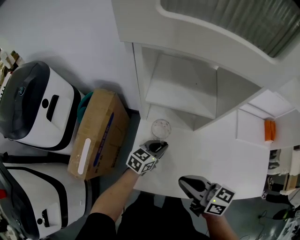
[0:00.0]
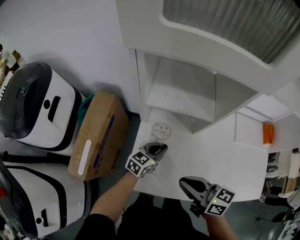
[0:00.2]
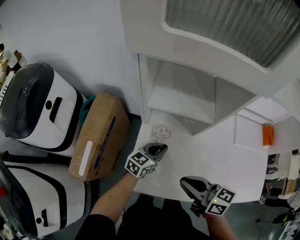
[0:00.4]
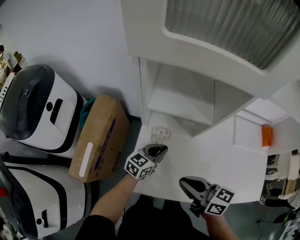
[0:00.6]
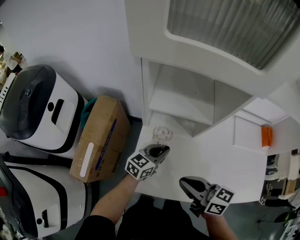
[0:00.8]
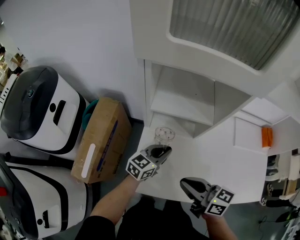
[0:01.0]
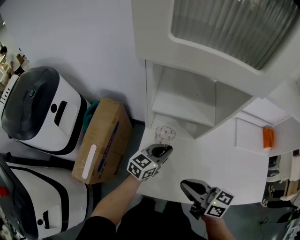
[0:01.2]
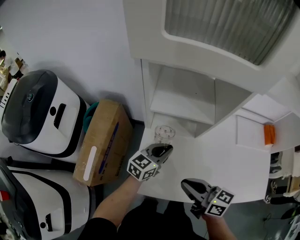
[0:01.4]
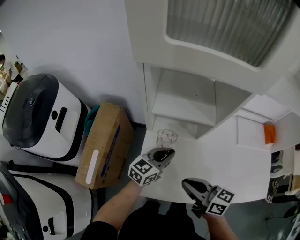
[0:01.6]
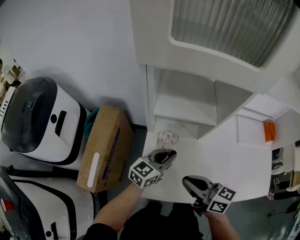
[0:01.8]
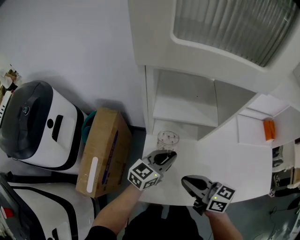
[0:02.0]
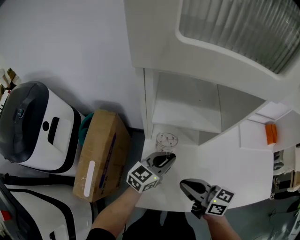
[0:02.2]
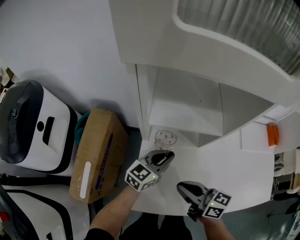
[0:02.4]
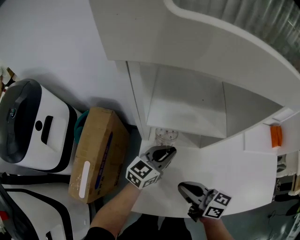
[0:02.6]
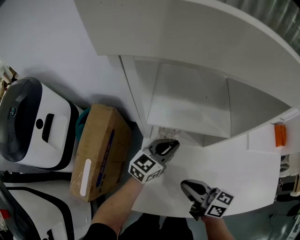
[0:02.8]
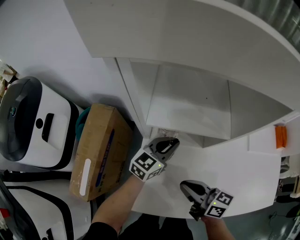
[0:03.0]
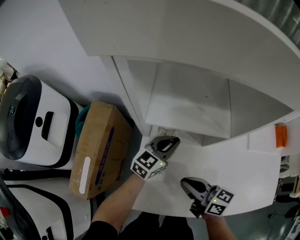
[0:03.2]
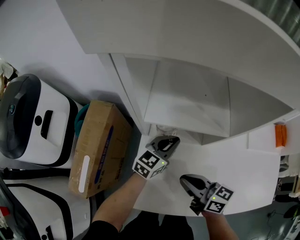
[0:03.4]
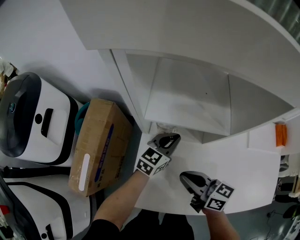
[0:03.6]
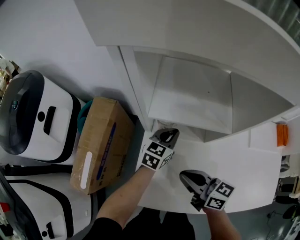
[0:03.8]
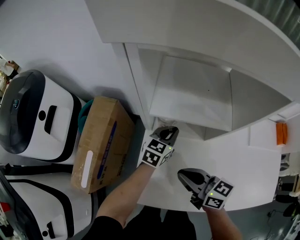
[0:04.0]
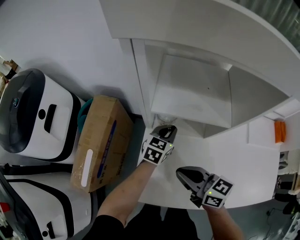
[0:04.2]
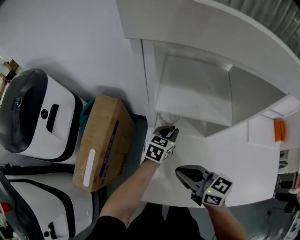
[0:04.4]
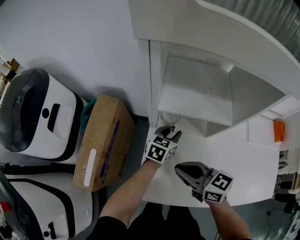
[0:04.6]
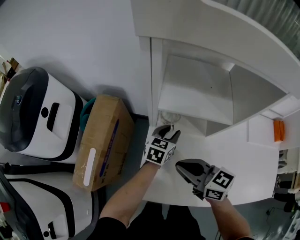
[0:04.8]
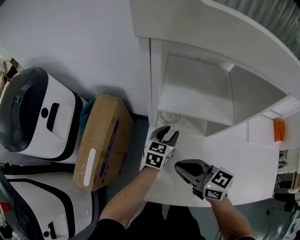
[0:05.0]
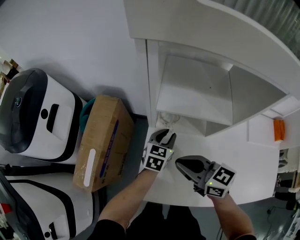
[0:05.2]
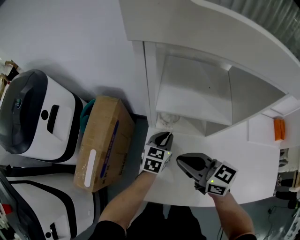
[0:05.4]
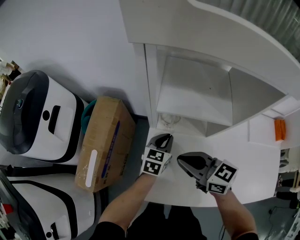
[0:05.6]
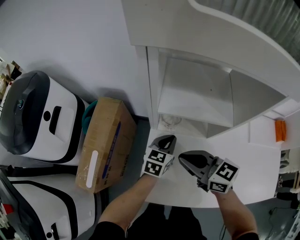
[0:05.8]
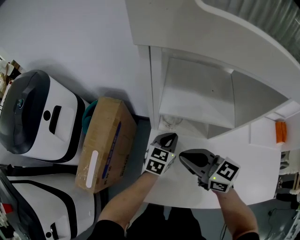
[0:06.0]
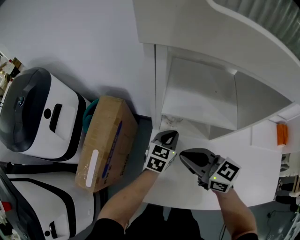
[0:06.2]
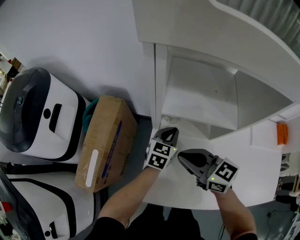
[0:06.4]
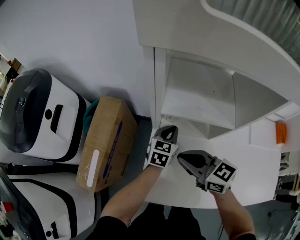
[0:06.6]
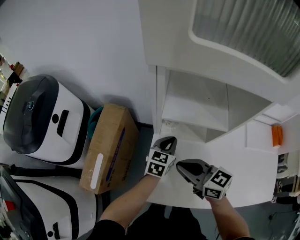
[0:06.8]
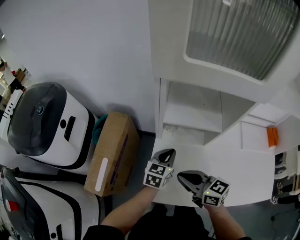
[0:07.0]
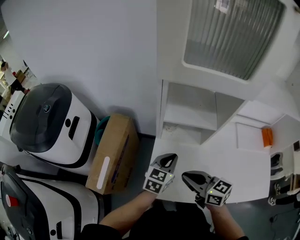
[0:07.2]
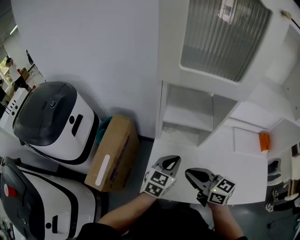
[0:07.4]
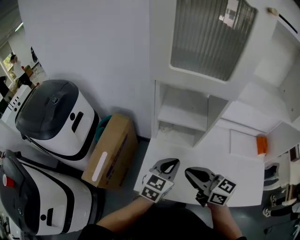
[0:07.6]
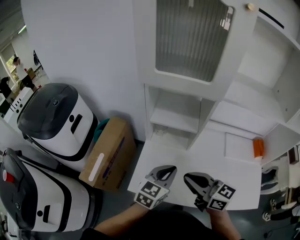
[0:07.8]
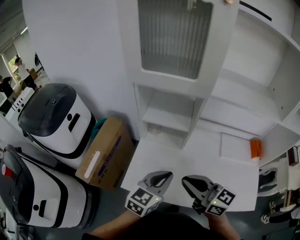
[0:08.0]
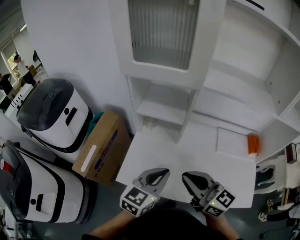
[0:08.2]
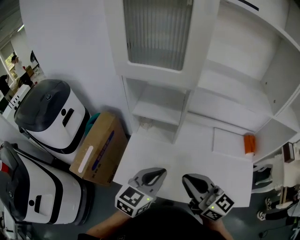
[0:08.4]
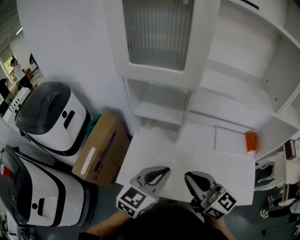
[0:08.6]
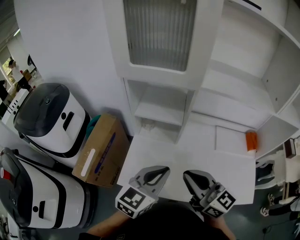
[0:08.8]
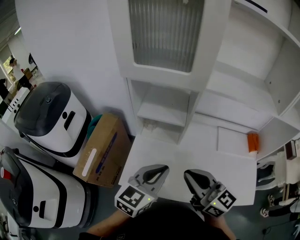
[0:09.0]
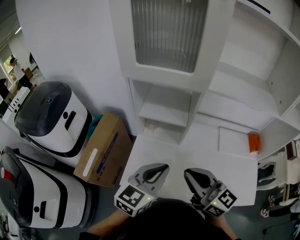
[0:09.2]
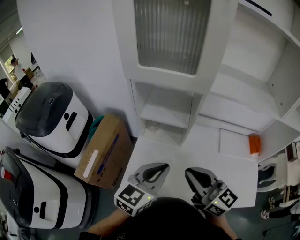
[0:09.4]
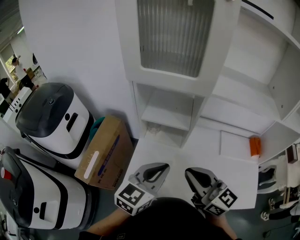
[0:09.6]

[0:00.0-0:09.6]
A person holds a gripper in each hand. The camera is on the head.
0:00.0 to 0:01.6: The left gripper shifts approximately 10 cm upward.
0:01.6 to 0:03.2: The right gripper heads downward and forward, covering approximately 10 cm. Meanwhile the left gripper goes roughly 10 cm forward.
0:03.2 to 0:04.8: The right gripper goes roughly 5 cm to the left. The left gripper moves roughly 5 cm, turns by roughly 20 degrees, and opens.
0:04.8 to 0:06.4: The left gripper closes.
0:06.4 to 0:08.0: The right gripper moves backward, upward and to the right, about 30 cm; the left gripper travels backward and upward by about 35 cm.
0:08.0 to 0:09.6: The left gripper shifts approximately 5 cm upward.

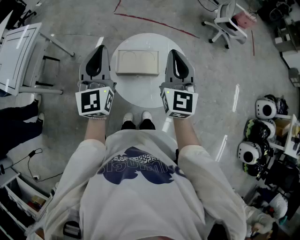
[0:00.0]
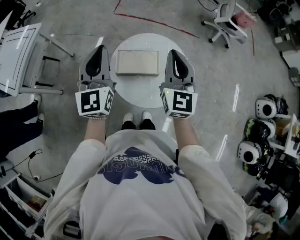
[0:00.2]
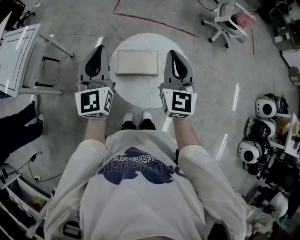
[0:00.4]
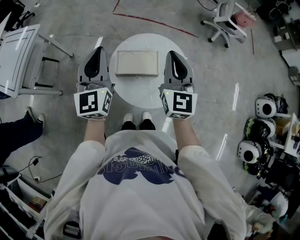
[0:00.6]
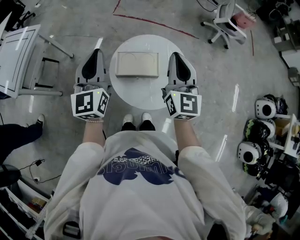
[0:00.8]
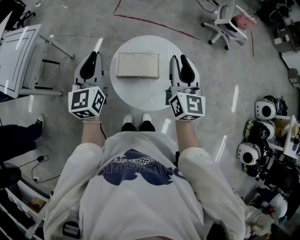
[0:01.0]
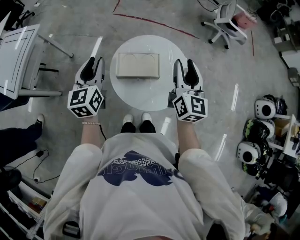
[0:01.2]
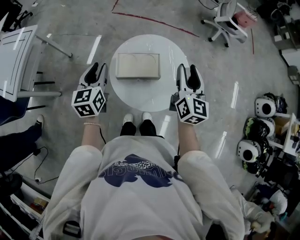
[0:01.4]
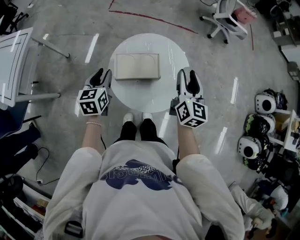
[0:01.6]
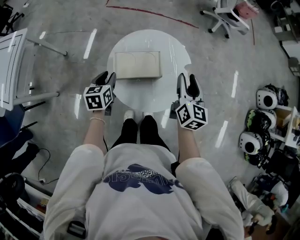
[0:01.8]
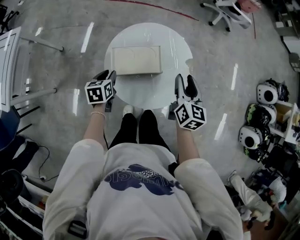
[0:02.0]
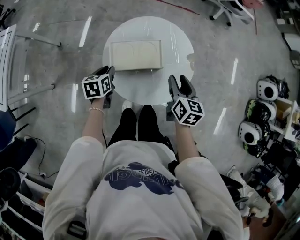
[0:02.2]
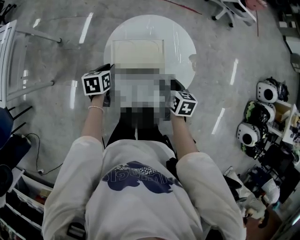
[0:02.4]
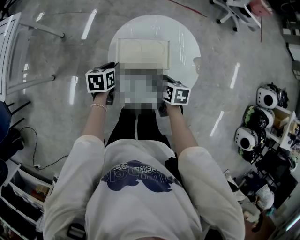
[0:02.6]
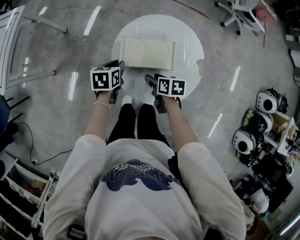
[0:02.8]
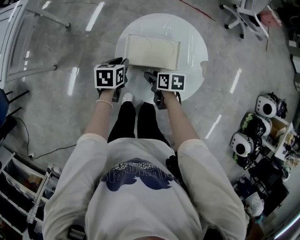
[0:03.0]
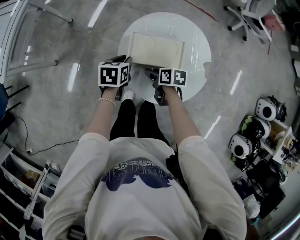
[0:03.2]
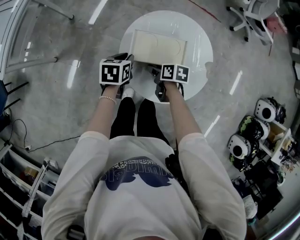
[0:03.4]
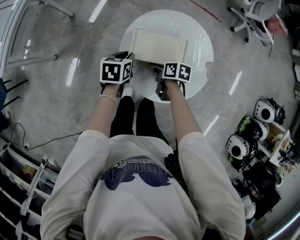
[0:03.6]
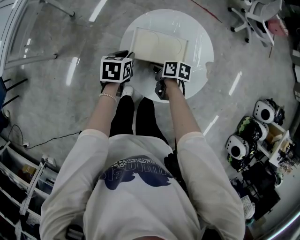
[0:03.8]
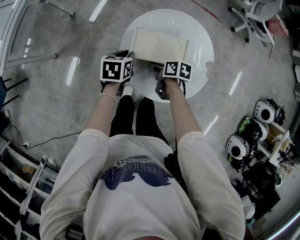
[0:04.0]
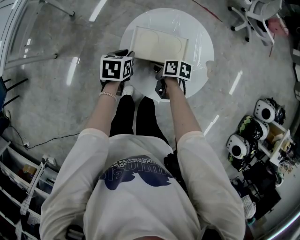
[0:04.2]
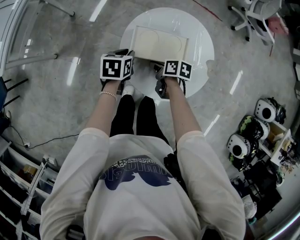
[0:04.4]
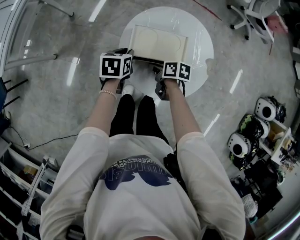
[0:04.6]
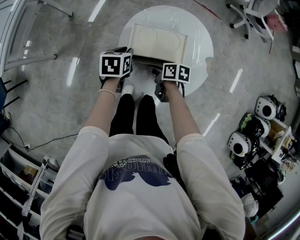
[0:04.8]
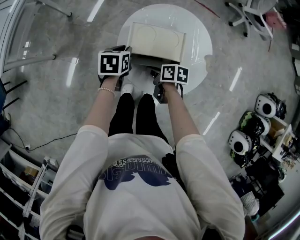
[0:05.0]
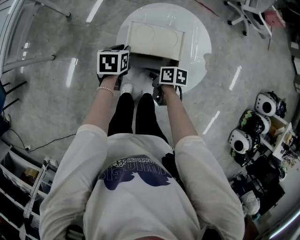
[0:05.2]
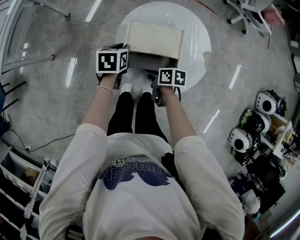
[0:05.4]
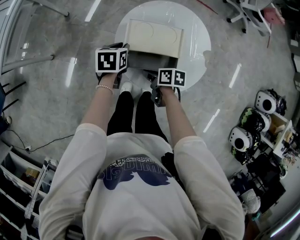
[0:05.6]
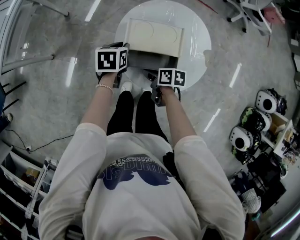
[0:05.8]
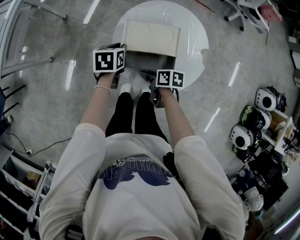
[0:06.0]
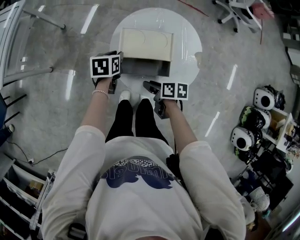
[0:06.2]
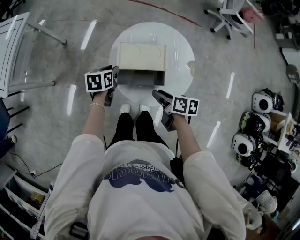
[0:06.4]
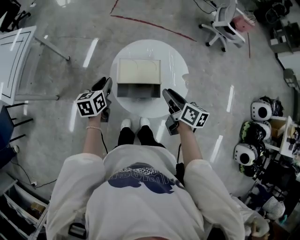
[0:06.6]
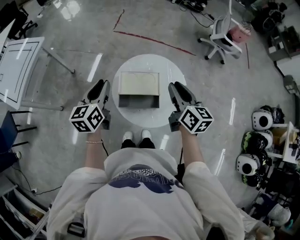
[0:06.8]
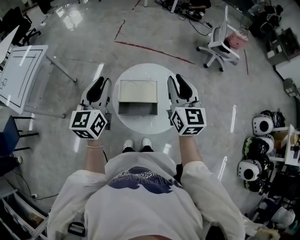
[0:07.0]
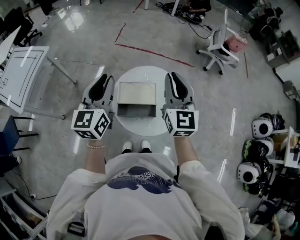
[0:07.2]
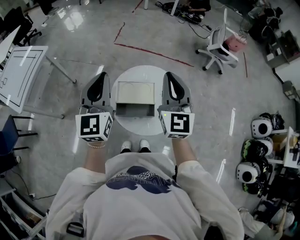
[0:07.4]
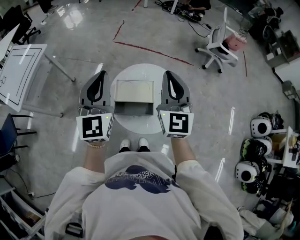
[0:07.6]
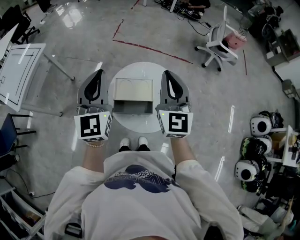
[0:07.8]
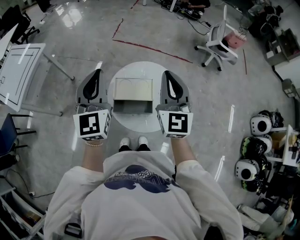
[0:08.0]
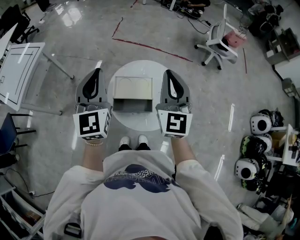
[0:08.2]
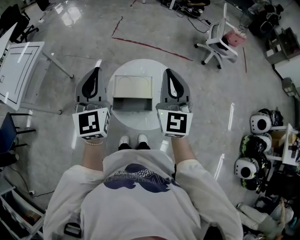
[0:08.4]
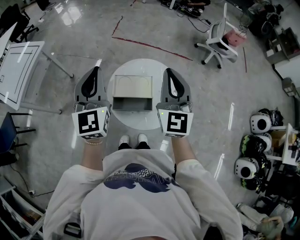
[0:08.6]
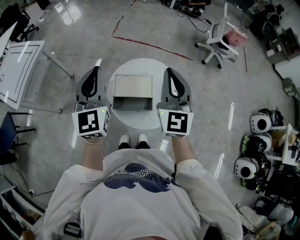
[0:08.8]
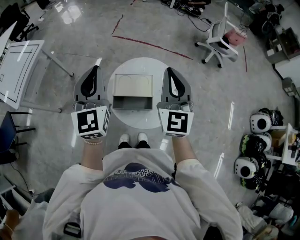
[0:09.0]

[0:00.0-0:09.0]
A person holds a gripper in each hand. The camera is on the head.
0:00.0 to 0:01.6: The right gripper shifts about 15 cm downward and to the right, rotates approximately 30 degrees, and opens, while the left gripper goes some 20 cm downward, angles its fingers downward, by some 40 degrees, and opens its fingers.
0:01.6 to 0:03.0: The left gripper goes roughly 15 cm downward, and turns by approximately 30 degrees. The right gripper travels downward by approximately 30 cm, and tilts its fingers about 40 degrees downward.
0:03.0 to 0:04.4: The right gripper closes.
0:04.4 to 0:06.0: The right gripper shifts about 10 cm backward.
0:06.0 to 0:07.6: Both grippers move upward, about 50 cm. The right gripper tilts its fingers approximately 50 degrees upward, and closes up; the left gripper tilts its fingers about 60 degrees upward.
0:07.6 to 0:09.0: The grippers move only a little.

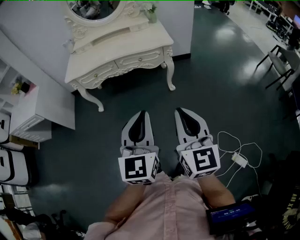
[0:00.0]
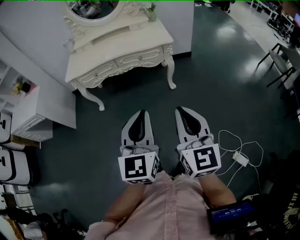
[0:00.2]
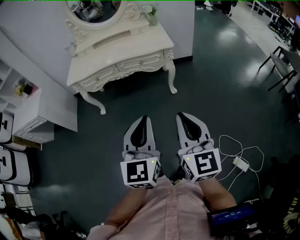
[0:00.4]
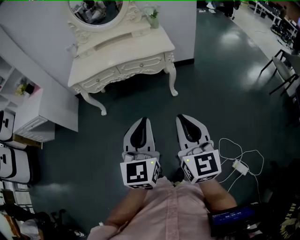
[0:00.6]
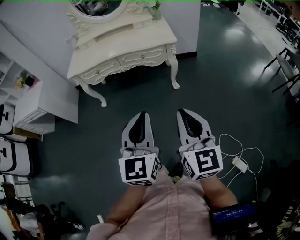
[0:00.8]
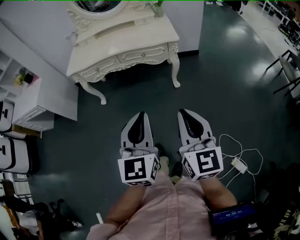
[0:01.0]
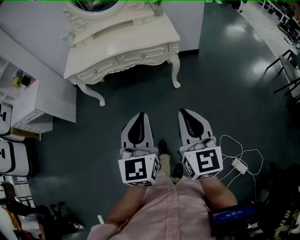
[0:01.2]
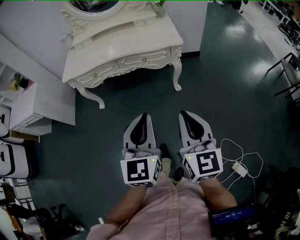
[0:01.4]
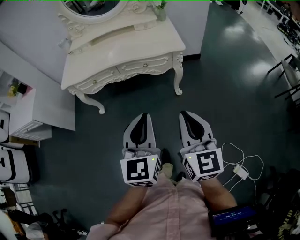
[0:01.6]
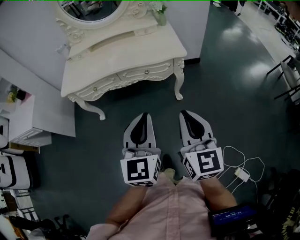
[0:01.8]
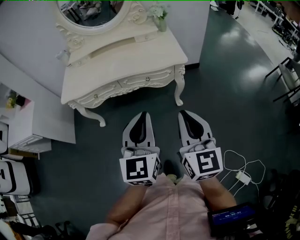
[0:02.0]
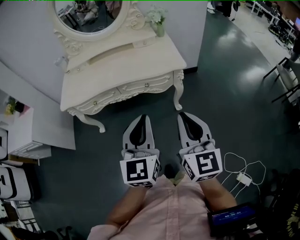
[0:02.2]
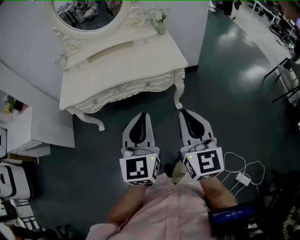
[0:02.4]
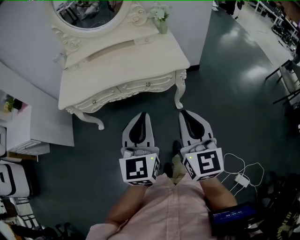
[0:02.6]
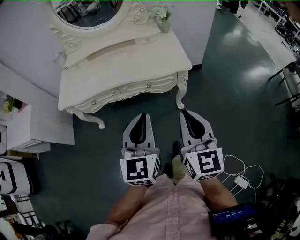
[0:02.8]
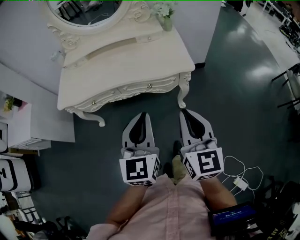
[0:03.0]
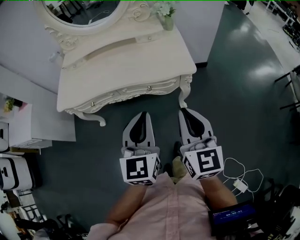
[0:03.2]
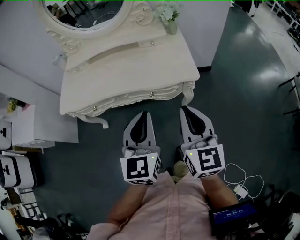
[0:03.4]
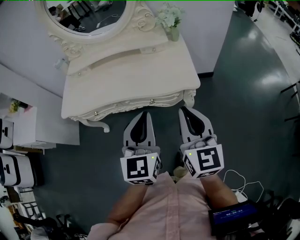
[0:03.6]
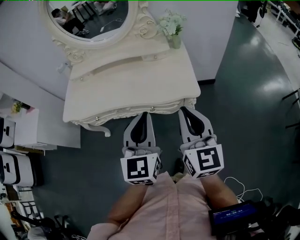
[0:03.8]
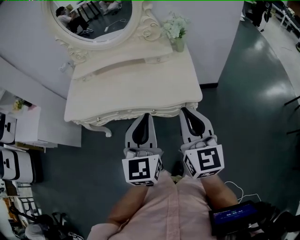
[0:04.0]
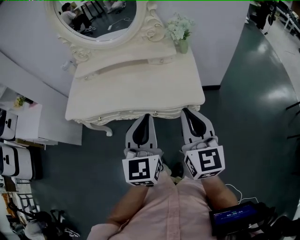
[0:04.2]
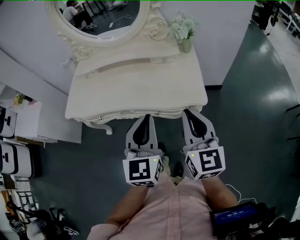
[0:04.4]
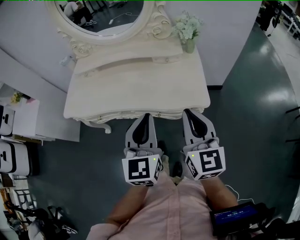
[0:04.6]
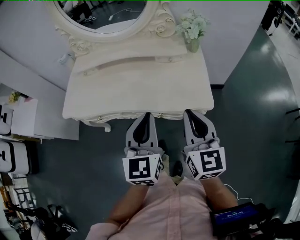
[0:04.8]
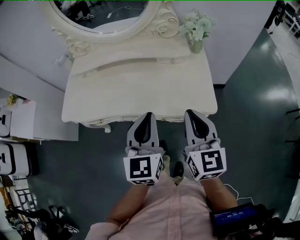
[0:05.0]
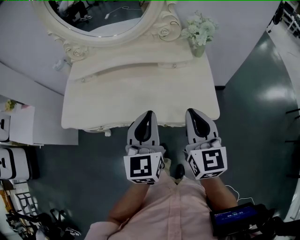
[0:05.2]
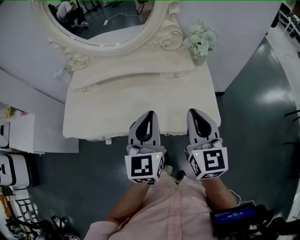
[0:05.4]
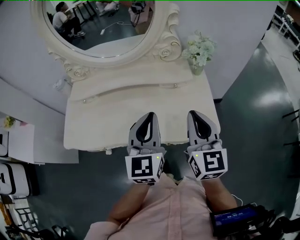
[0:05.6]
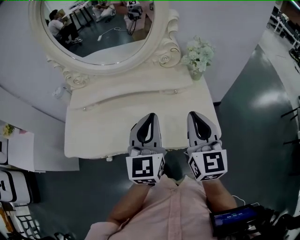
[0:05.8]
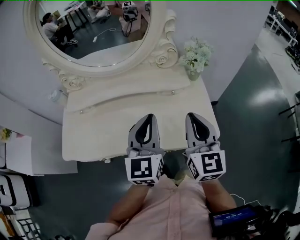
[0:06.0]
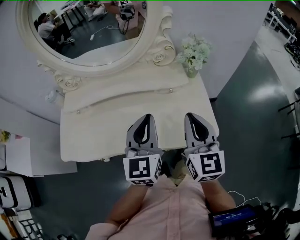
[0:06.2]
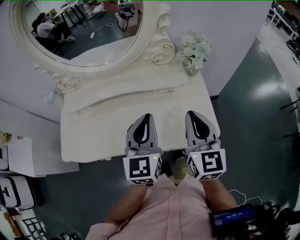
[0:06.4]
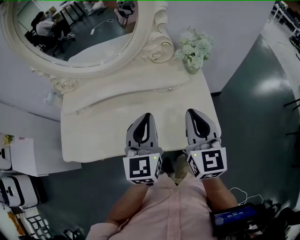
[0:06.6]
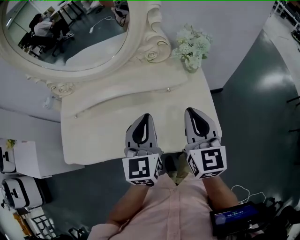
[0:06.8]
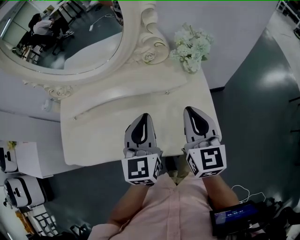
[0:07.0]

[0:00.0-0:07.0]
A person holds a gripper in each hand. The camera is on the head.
0:00.0 to 0:01.4: The right gripper shifts some 15 cm forward and downward. The left gripper is displaced forward by some 10 cm.
0:01.4 to 0:02.8: The two grippers go some 20 cm forward.
0:02.8 to 0:04.2: The two grippers go roughly 20 cm forward.
0:04.2 to 0:05.6: Both grippers move forward, roughly 20 cm.
0:05.6 to 0:07.0: Both grippers move forward, some 10 cm.
